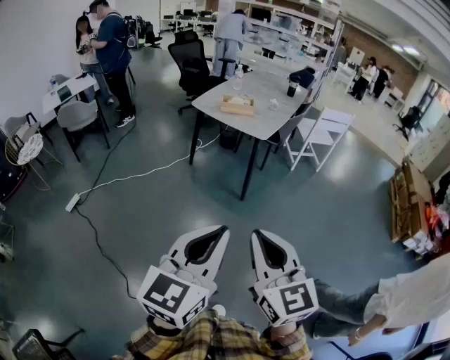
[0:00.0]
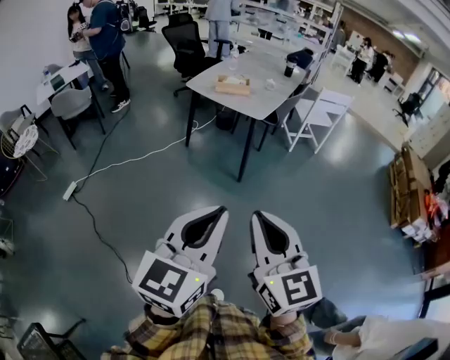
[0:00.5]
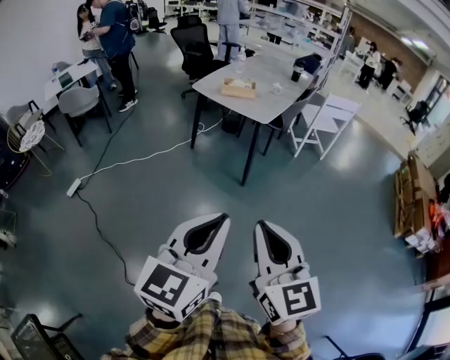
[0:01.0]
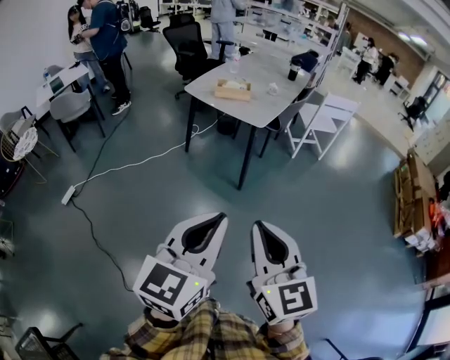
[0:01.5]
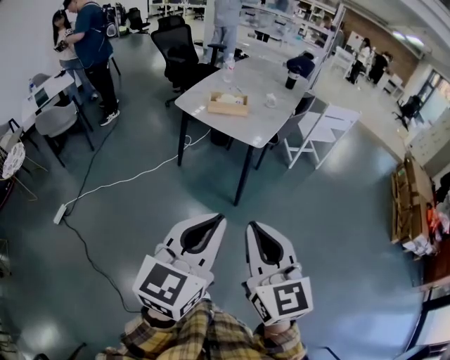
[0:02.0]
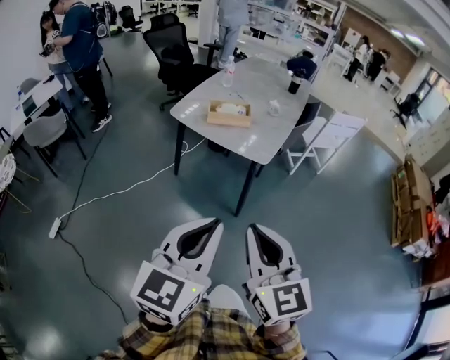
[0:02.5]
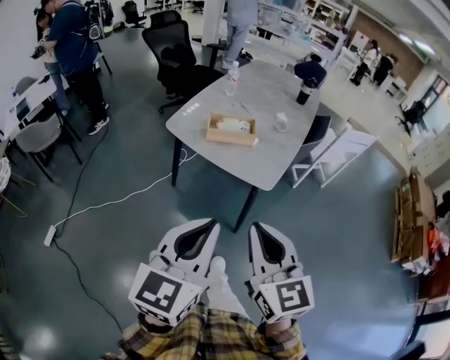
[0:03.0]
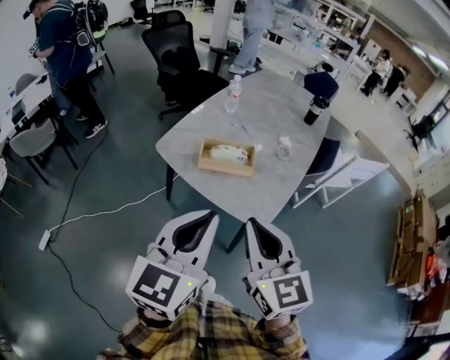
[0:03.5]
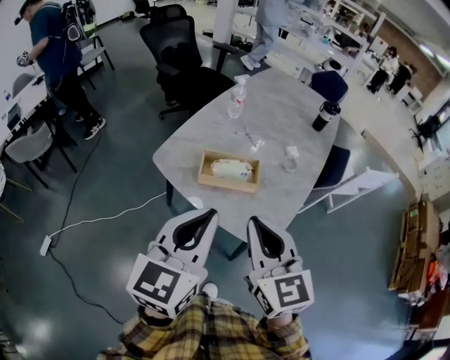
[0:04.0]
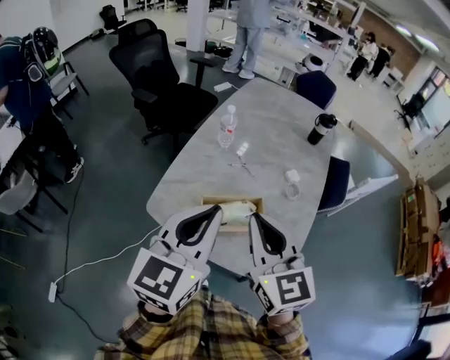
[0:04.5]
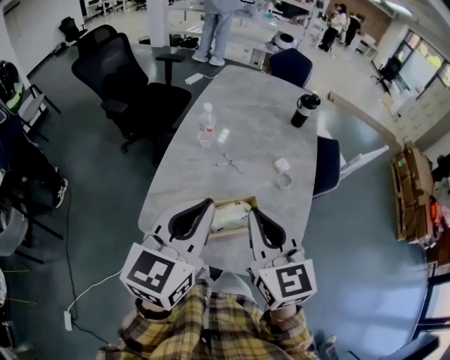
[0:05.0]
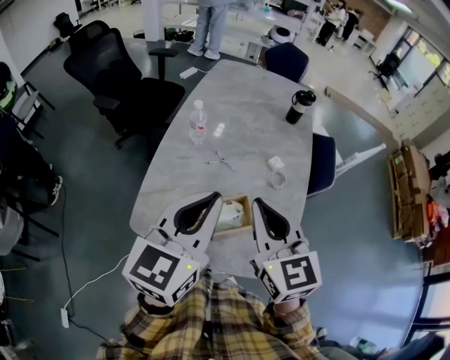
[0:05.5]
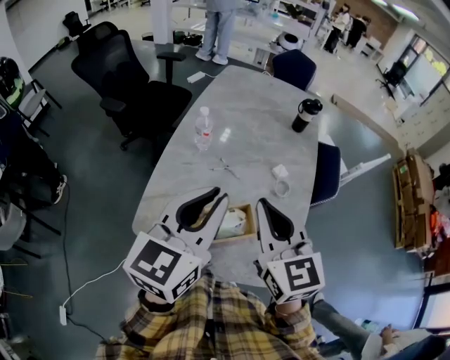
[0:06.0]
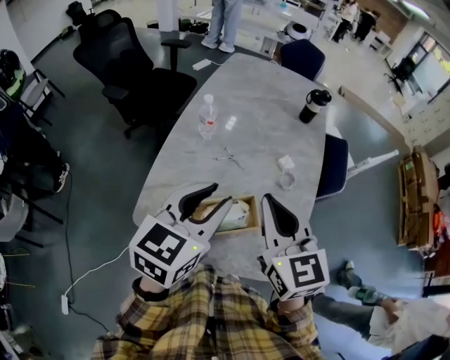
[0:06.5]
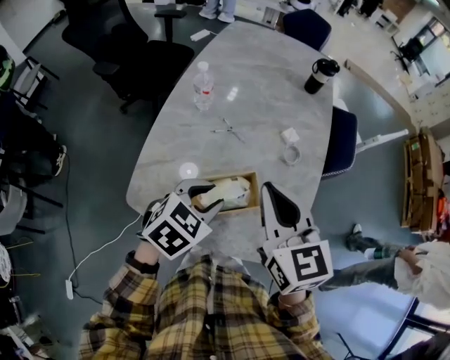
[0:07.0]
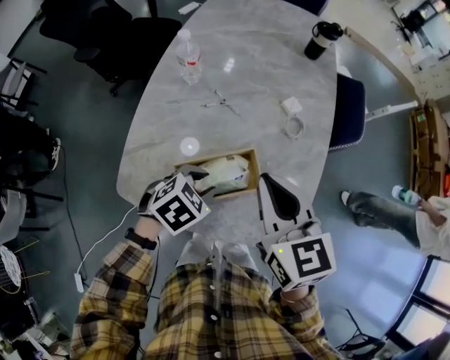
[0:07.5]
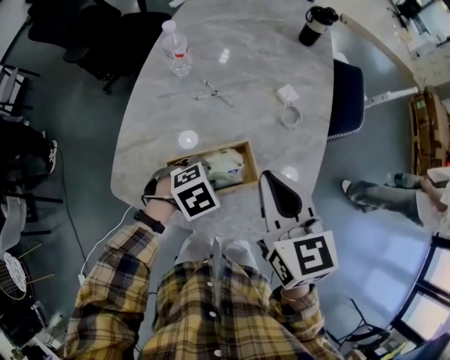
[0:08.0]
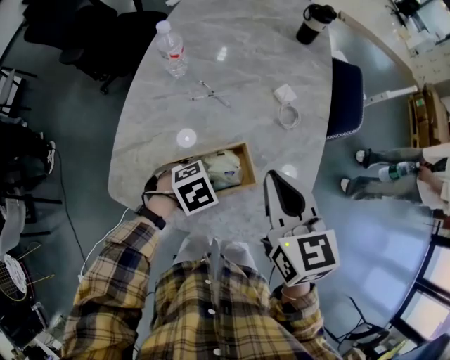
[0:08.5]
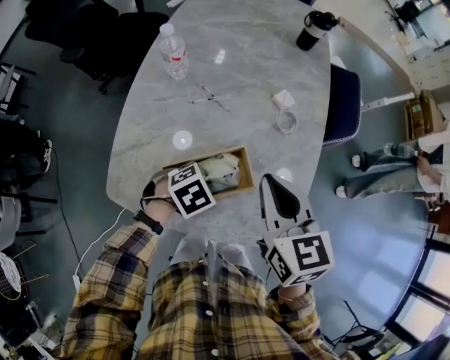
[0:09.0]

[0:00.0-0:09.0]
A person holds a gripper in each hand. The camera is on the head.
0:00.0 to 0:02.0: The two grippers go roughly 20 cm forward.
0:02.0 to 0:04.5: The two grippers travel together, forward, approximately 70 cm.
0:04.5 to 0:07.0: The left gripper travels downward and forward by roughly 20 cm, tilts its fingers some 40 degrees downward, and opens its fingers. The right gripper is displaced forward and downward by approximately 10 cm.
0:07.0 to 0:09.0: The left gripper shifts roughly 15 cm downward, and rotates about 30 degrees. Meanwhile the right gripper moves downward, roughly 10 cm.

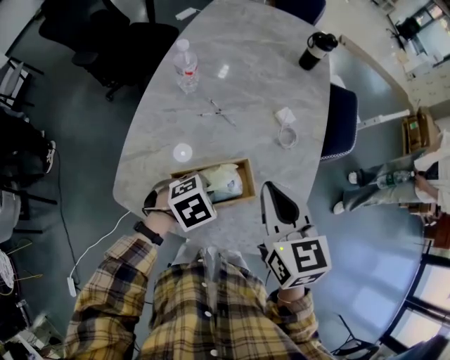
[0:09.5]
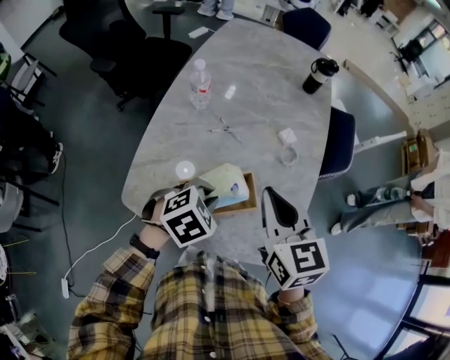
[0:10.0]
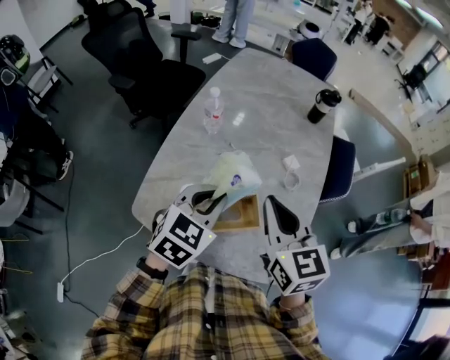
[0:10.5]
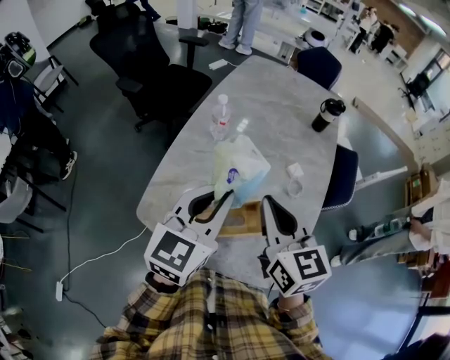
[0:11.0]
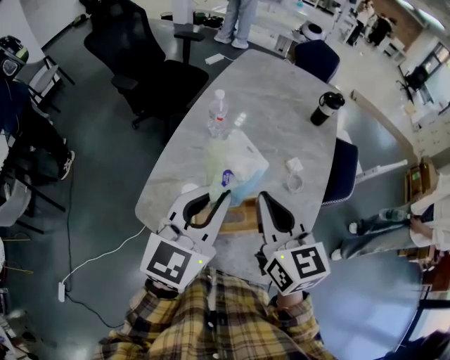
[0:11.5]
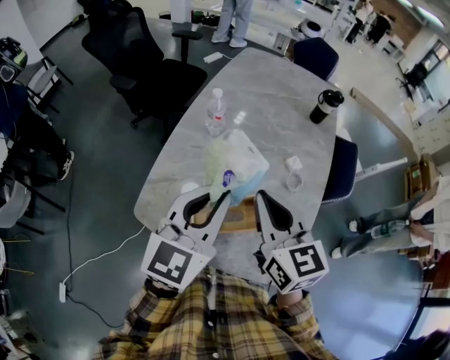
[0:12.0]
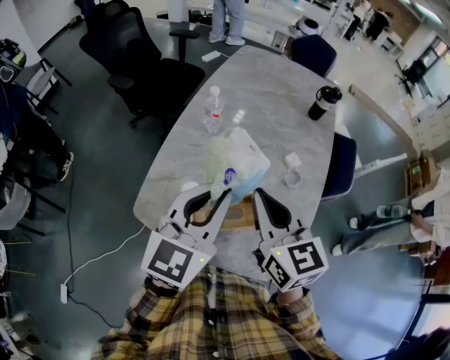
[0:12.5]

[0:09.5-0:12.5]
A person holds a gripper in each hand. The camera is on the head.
0:09.5 to 0:11.0: The right gripper moves upward, some 10 cm; the left gripper moves upward, some 30 cm, and angles its fingers upward, by roughly 60 degrees.
0:11.0 to 0:12.5: There are only small adjustments of the grippers.

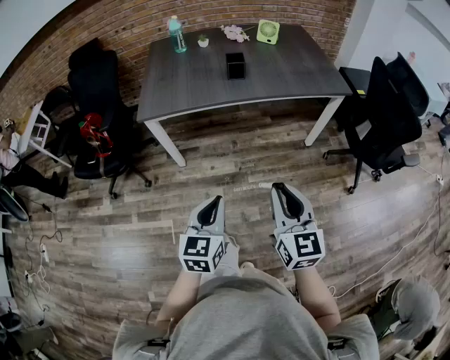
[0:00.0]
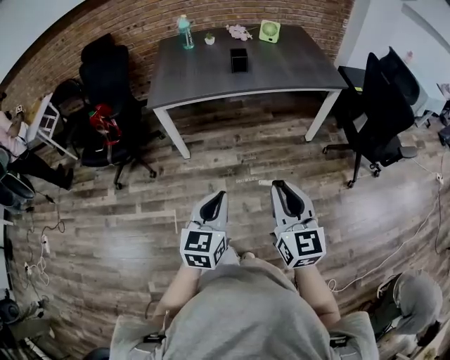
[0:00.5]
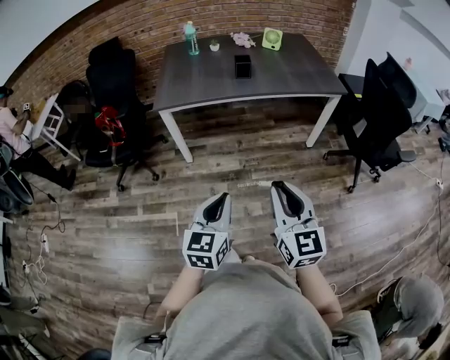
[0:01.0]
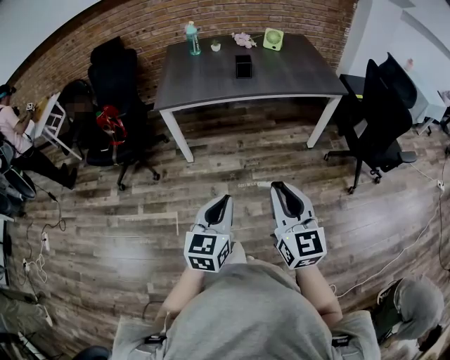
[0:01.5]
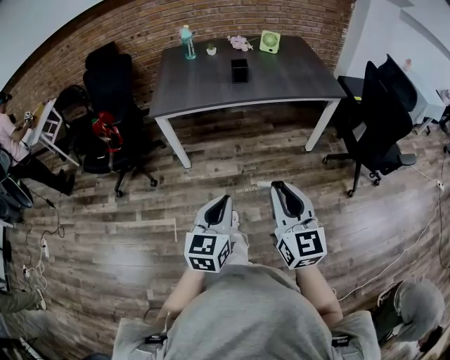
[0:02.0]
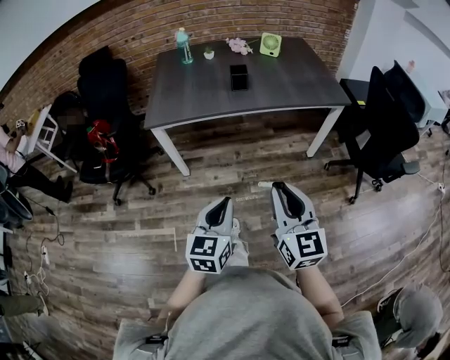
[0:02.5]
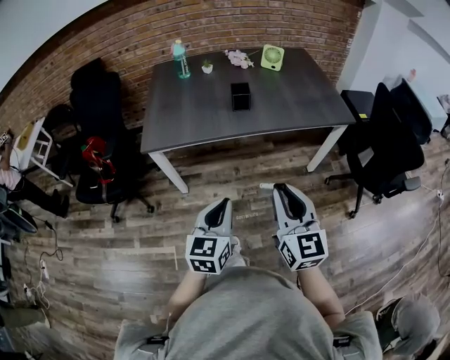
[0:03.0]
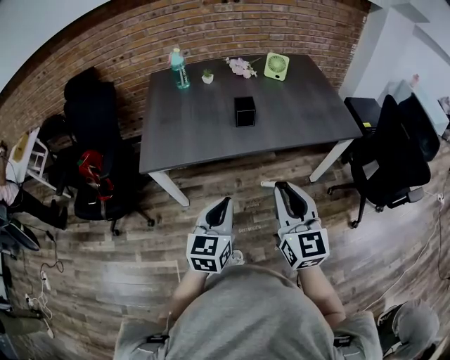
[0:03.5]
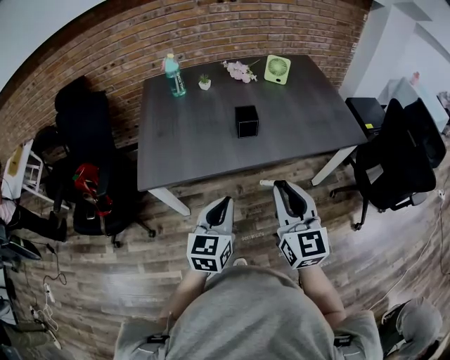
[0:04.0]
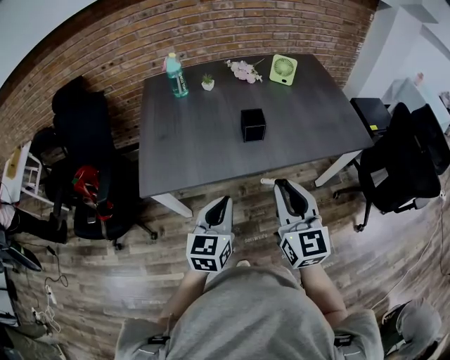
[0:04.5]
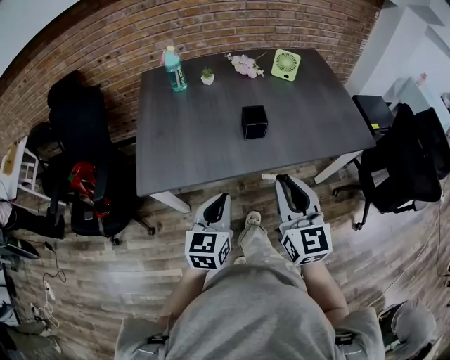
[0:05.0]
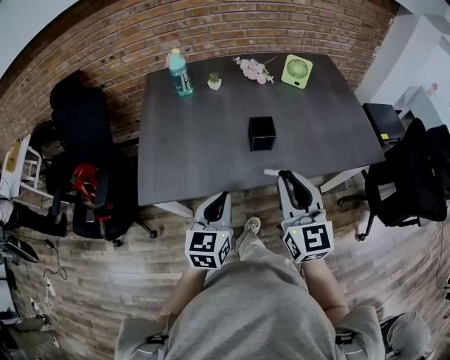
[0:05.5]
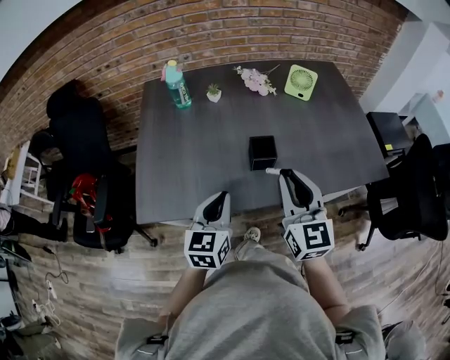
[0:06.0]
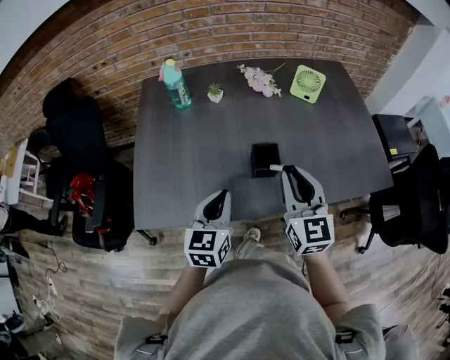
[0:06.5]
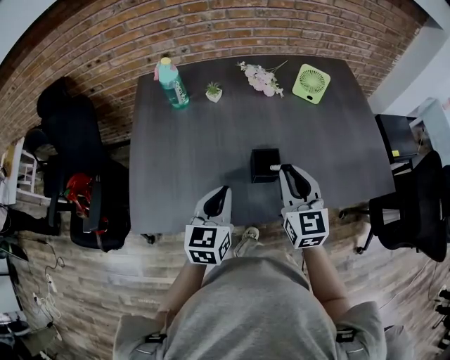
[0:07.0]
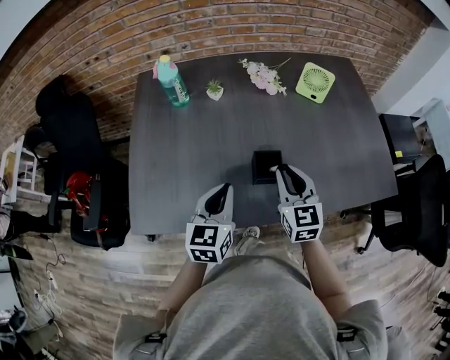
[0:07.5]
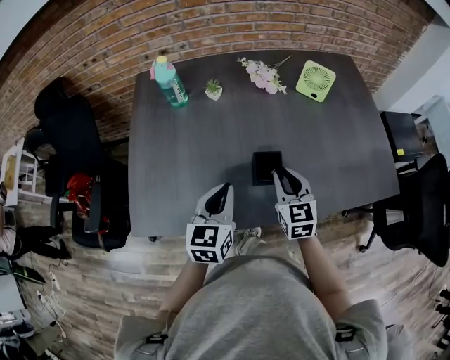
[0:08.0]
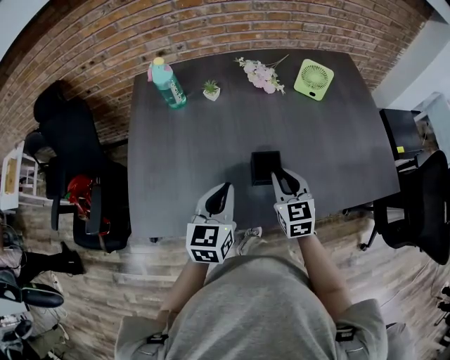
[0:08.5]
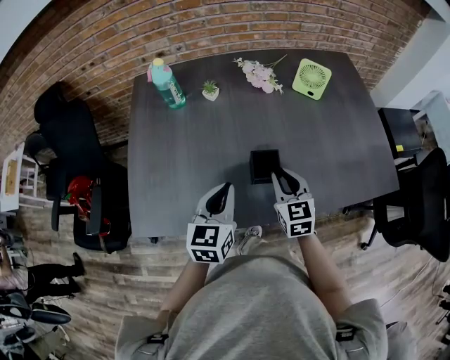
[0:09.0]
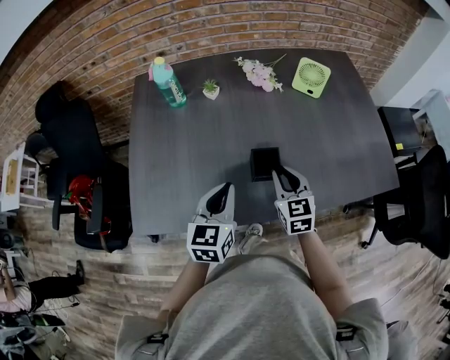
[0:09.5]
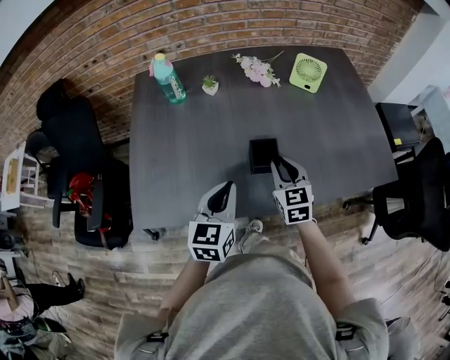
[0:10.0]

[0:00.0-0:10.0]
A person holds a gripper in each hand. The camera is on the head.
0:00.0 to 0:02.0: The grippers both shift backward by about 10 cm.
0:02.0 to 0:04.0: The two grippers go about 40 cm forward.
0:04.0 to 0:06.0: The grippers both shift forward by about 20 cm.
0:06.0 to 0:08.0: The left gripper travels forward by about 10 cm; the right gripper shifts about 20 cm downward and forward.
0:08.0 to 0:10.0: The grippers make only small movements.

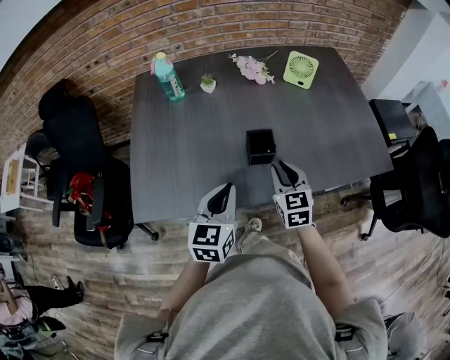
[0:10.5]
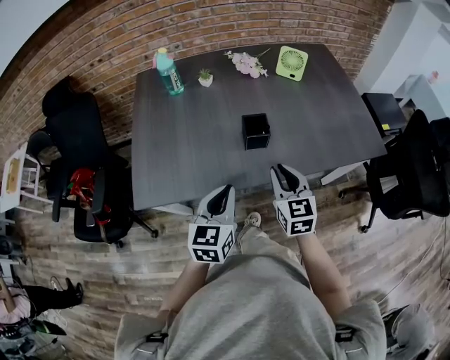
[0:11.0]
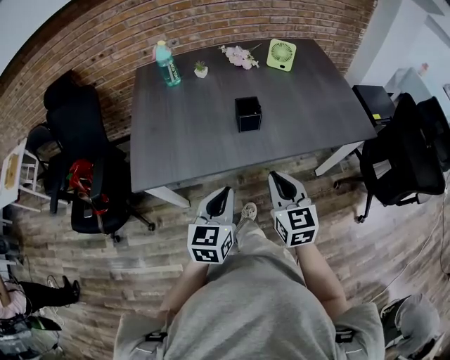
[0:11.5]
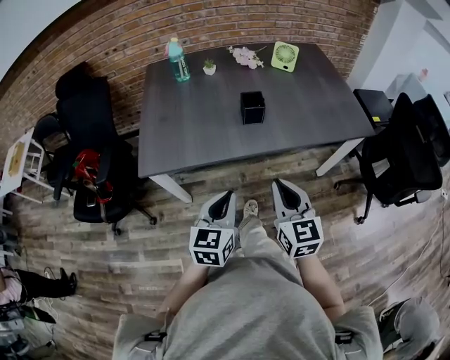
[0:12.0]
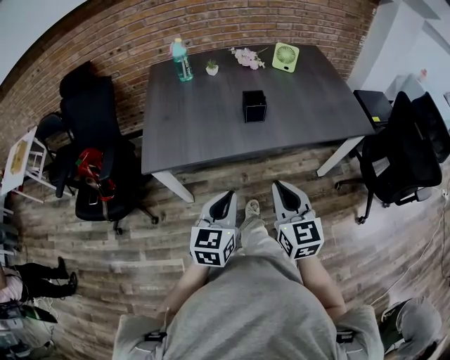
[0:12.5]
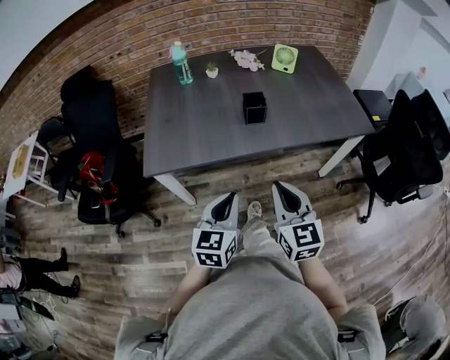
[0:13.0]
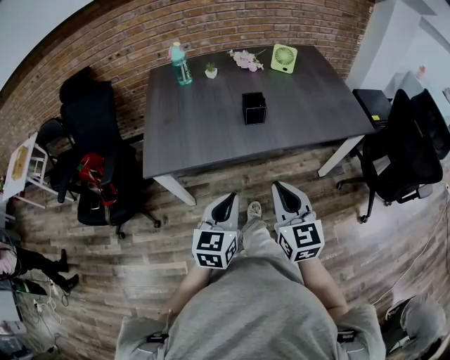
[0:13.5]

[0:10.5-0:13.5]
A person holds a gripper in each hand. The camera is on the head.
0:10.5 to 0:12.0: The two grippers go roughly 30 cm backward.
0:12.0 to 0:13.5: The grippers move only a little.

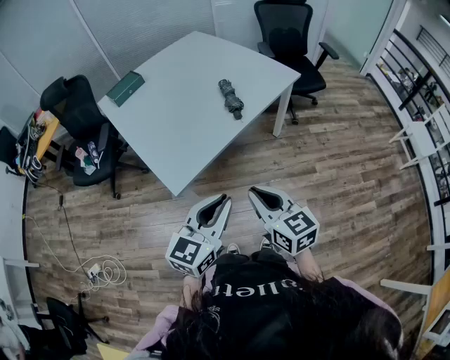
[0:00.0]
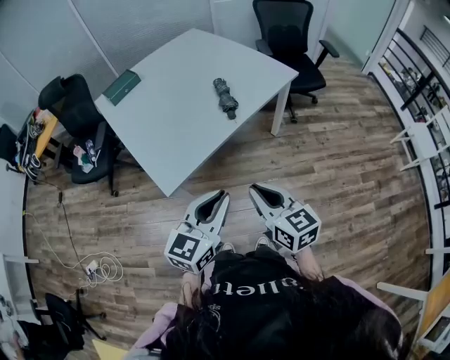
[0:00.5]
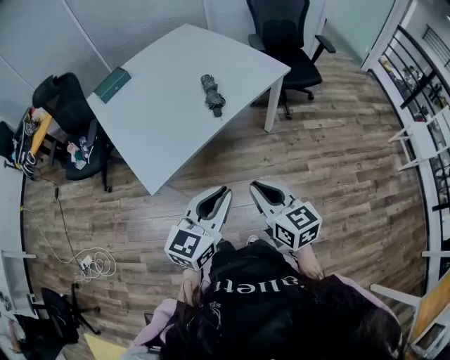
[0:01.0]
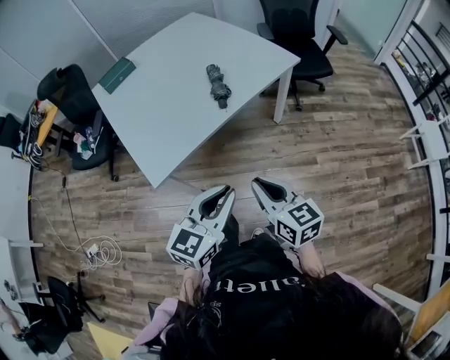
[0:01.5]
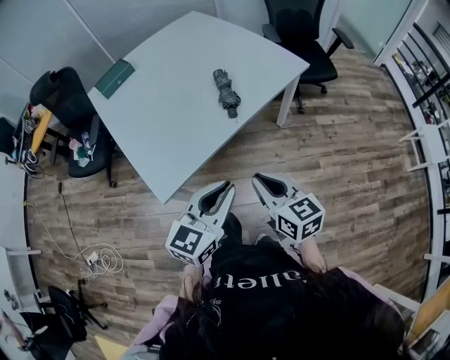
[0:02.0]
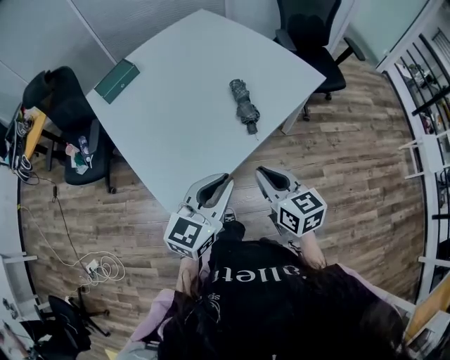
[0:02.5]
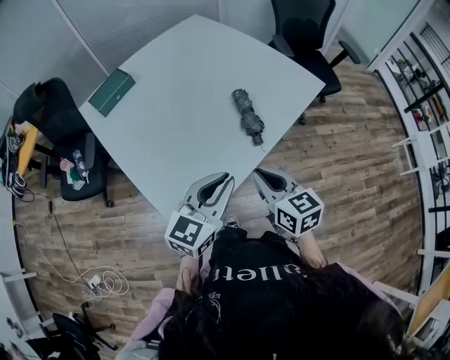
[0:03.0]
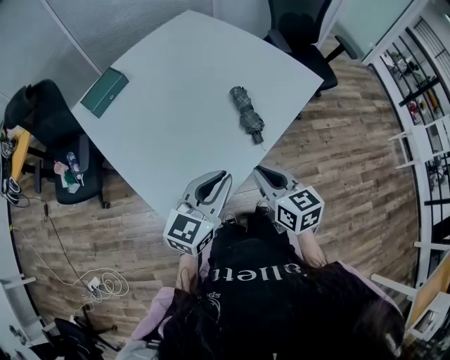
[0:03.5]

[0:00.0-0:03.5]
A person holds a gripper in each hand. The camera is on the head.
0:00.0 to 0:02.0: The two grippers go approximately 15 cm forward and to the right.
0:02.0 to 0:03.5: Both grippers move forward and to the left, roughly 20 cm.
